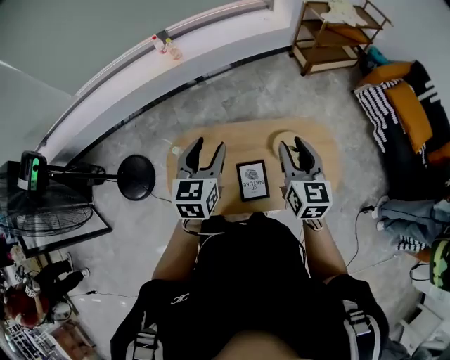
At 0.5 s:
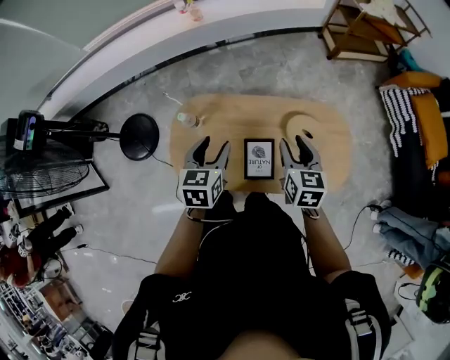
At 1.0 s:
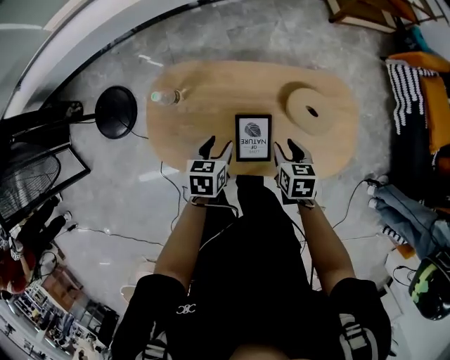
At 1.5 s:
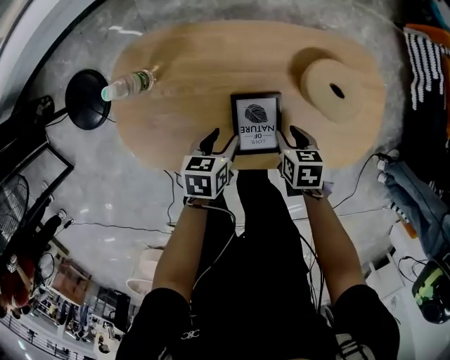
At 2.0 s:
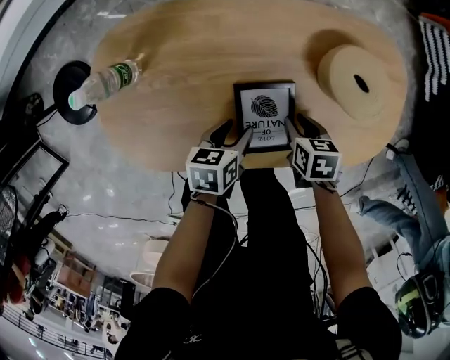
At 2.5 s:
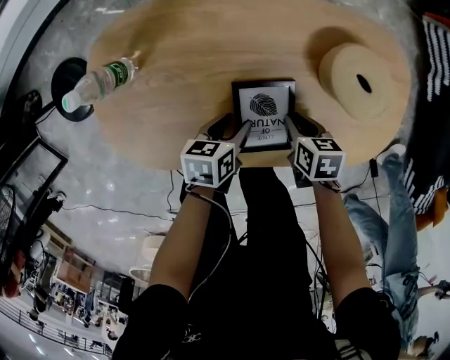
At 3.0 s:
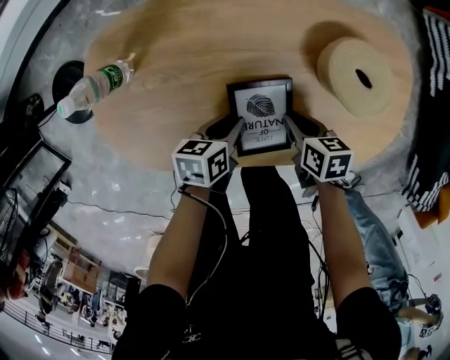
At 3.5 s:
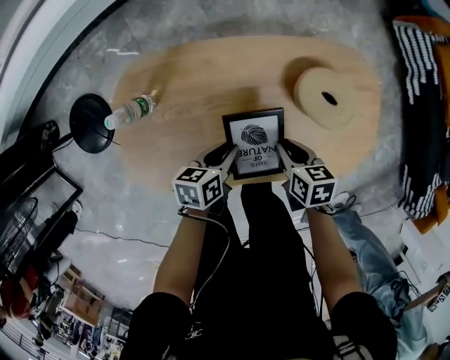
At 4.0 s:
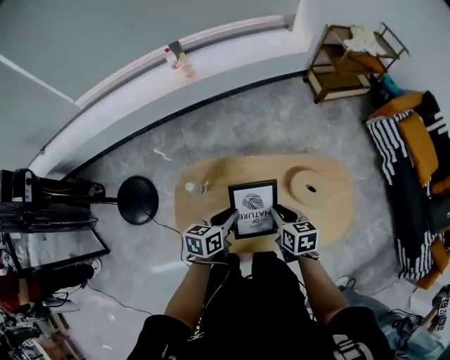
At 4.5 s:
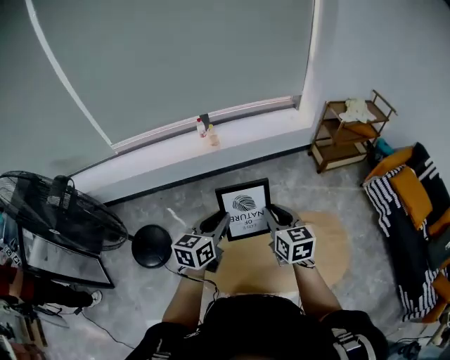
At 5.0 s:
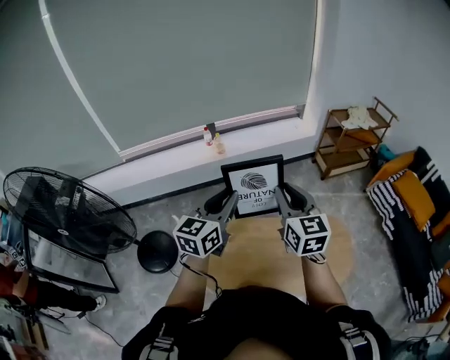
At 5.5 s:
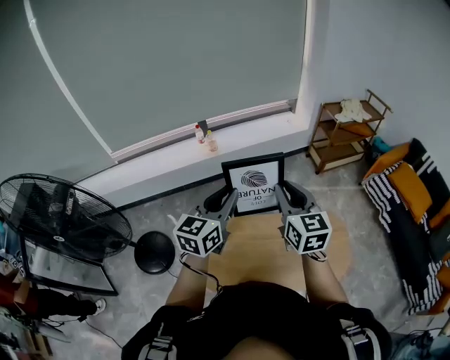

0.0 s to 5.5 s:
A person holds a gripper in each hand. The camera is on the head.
0.0 to 2.0 s: Both grippers move downward, about 60 cm. The right gripper angles its fingers downward, by roughly 50 degrees. The left gripper changes its angle by approximately 50 degrees.
2.0 to 3.5 s: The grippers both shift upward by some 10 cm. The left gripper closes.
3.5 to 5.5 s: Both grippers travel together upward, approximately 60 cm. The left gripper points its fingers about 40 degrees further upward, while the right gripper tilts its fingers approximately 50 degrees upward.

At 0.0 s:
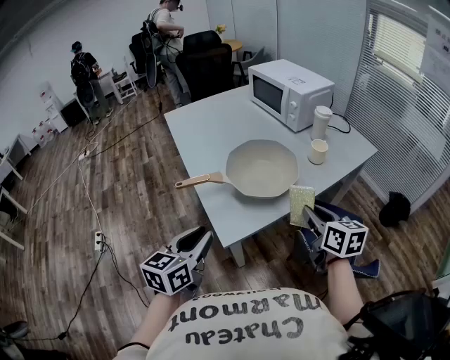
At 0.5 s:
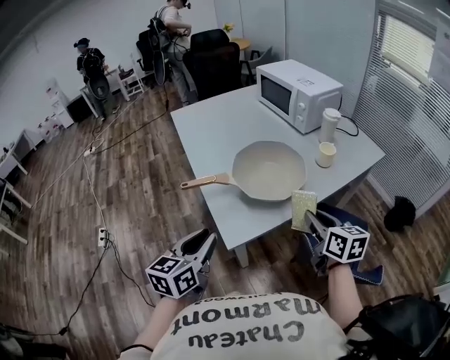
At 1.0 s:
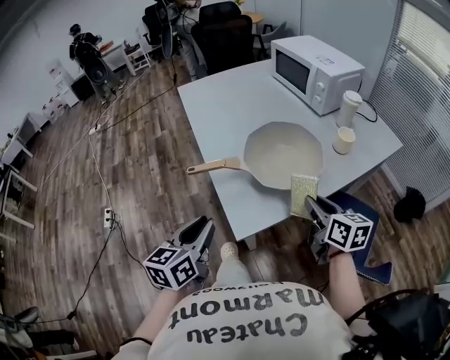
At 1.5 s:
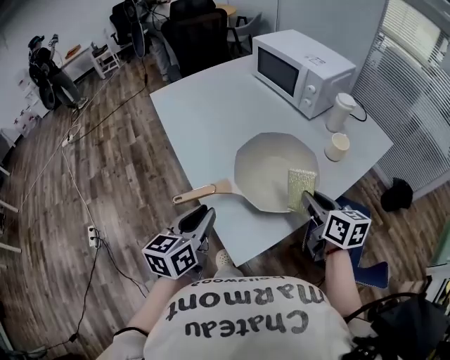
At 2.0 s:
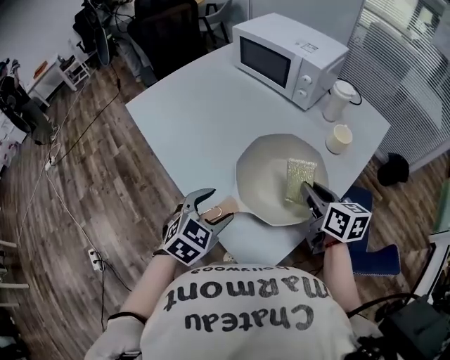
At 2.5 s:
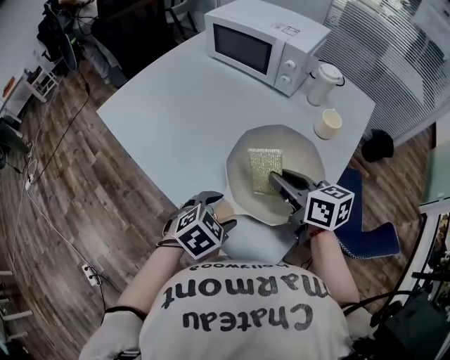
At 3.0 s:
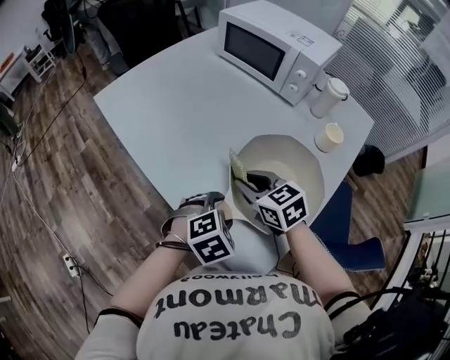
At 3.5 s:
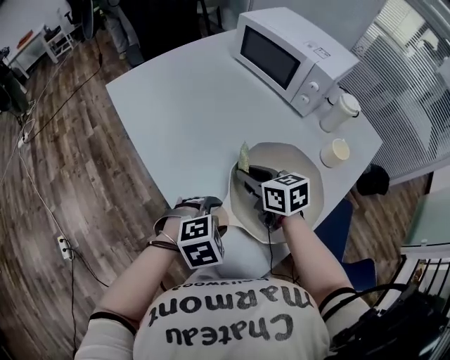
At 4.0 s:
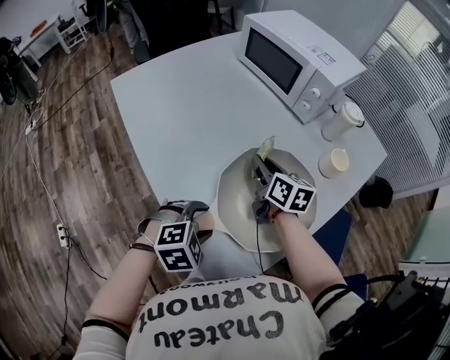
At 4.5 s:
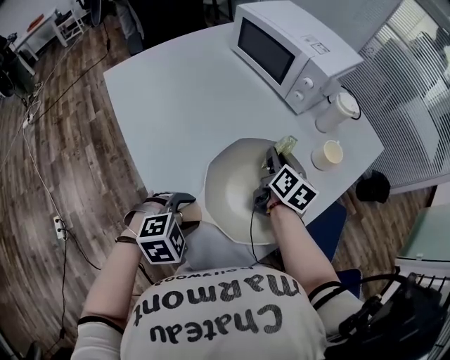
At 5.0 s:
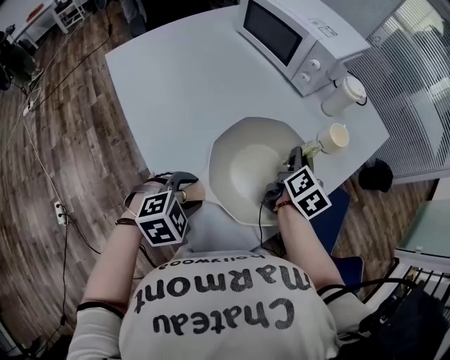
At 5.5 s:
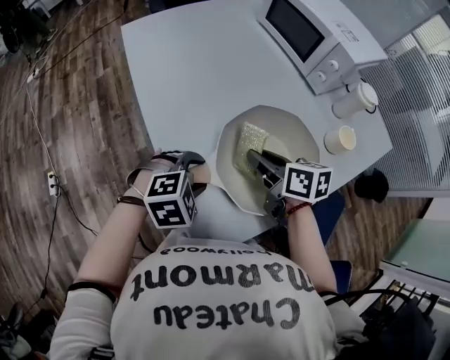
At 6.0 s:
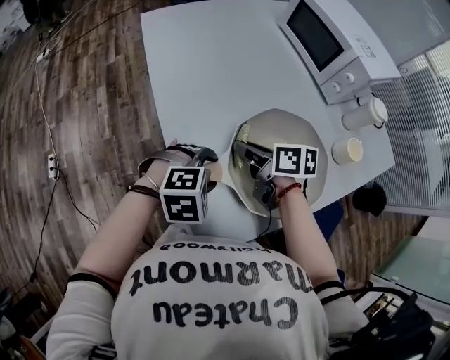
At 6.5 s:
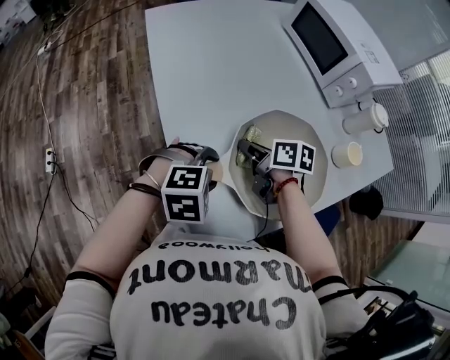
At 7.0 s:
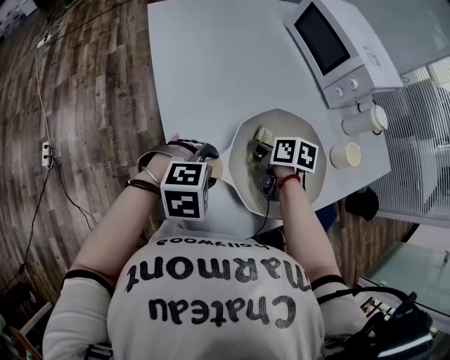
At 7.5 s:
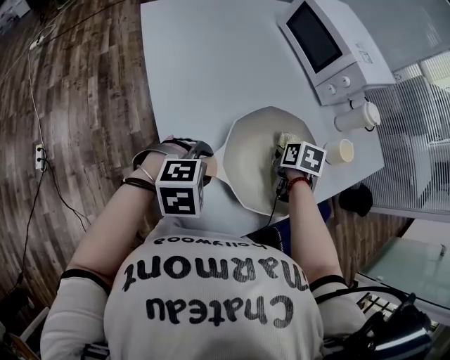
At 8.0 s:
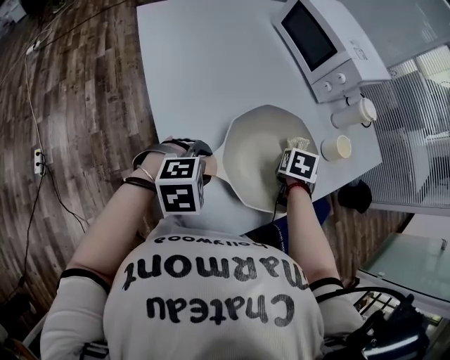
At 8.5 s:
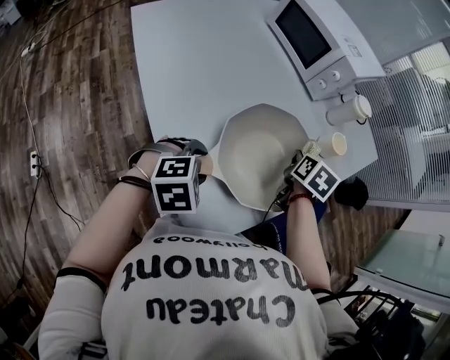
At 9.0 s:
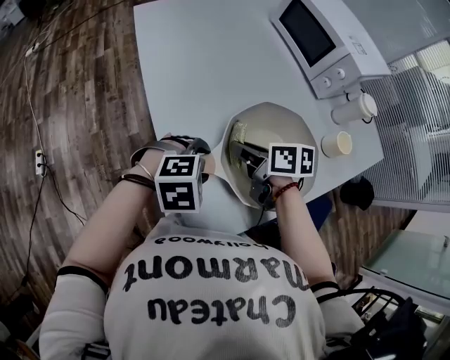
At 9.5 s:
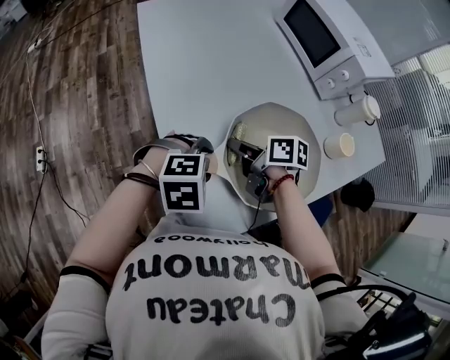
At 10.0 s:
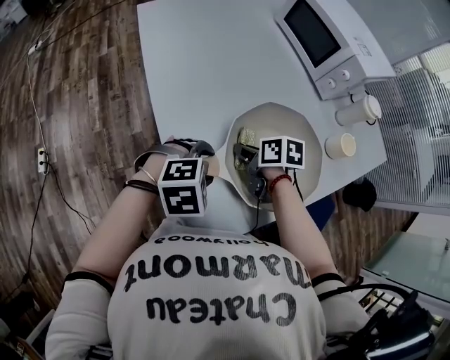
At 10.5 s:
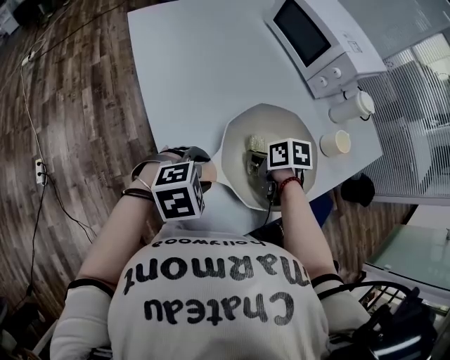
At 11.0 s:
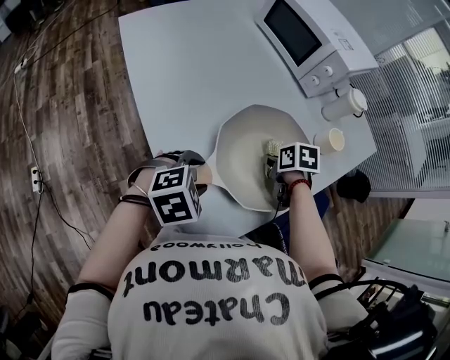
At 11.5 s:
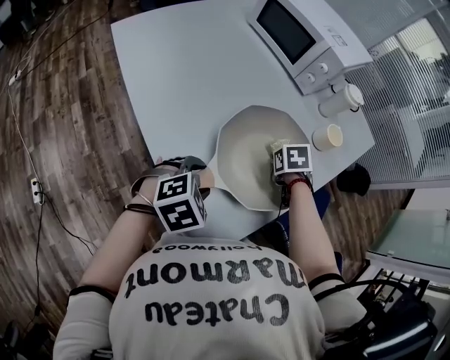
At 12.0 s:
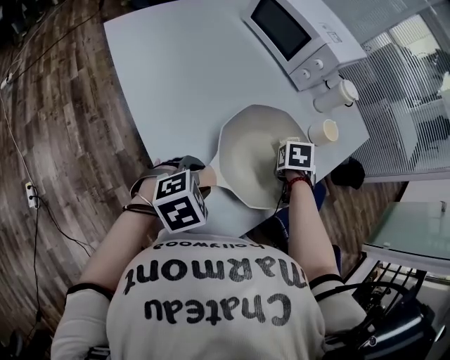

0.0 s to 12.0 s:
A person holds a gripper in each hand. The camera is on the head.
0.0 to 2.0 s: The left gripper moves forward, some 25 cm, changes its angle by some 50 degrees, and opens. The right gripper moves forward and to the left, about 20 cm.
2.0 to 4.0 s: The right gripper travels forward, to the left and downward by some 20 cm. The left gripper is displaced downward by about 5 cm, and rotates approximately 30 degrees.
4.0 to 6.0 s: The right gripper shifts by approximately 15 cm, and swivels some 40 degrees.
6.0 to 8.0 s: The right gripper changes place by about 25 cm, and points its fingers some 30 degrees further downward.
8.0 to 10.0 s: The right gripper changes place by approximately 20 cm, and changes its angle by approximately 50 degrees.
10.0 to 12.0 s: The right gripper changes place by approximately 20 cm, and rotates approximately 50 degrees.

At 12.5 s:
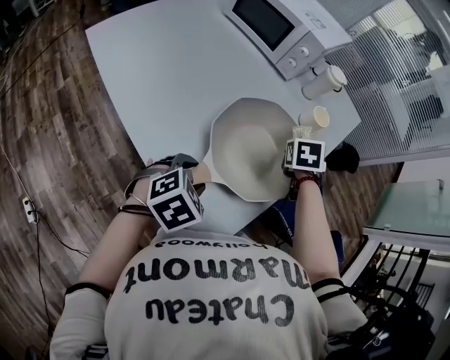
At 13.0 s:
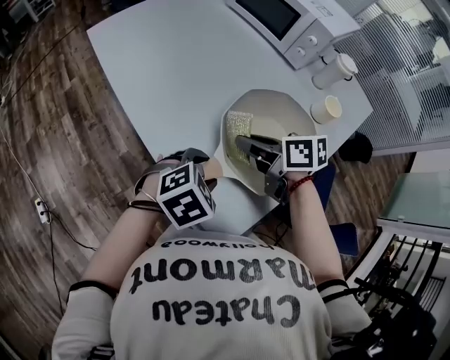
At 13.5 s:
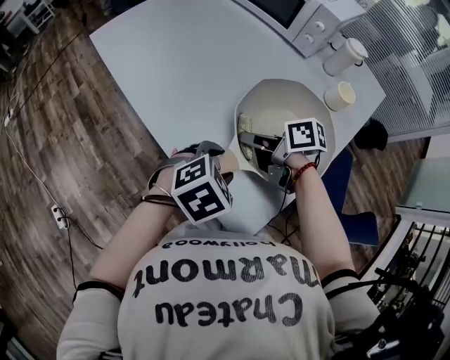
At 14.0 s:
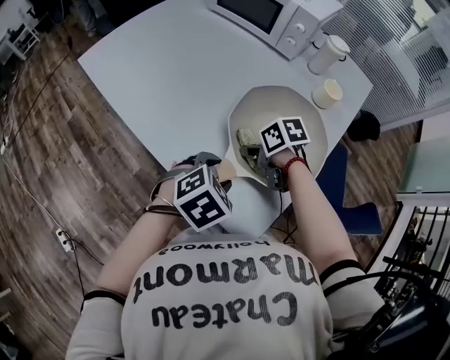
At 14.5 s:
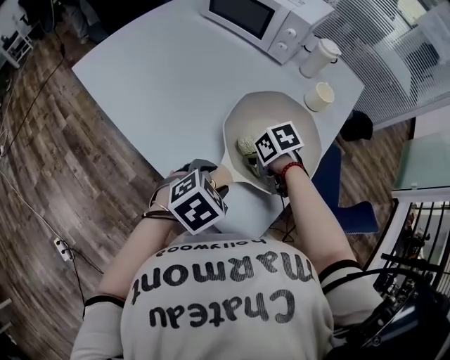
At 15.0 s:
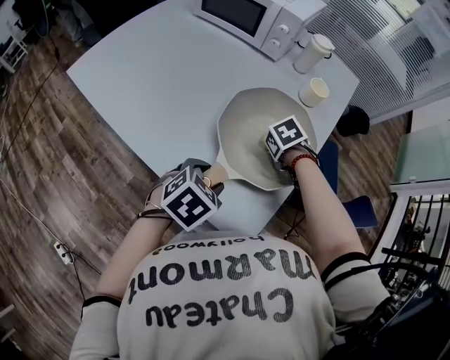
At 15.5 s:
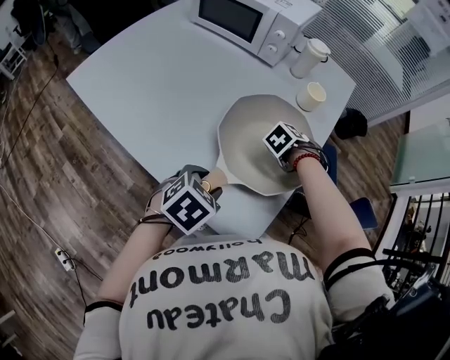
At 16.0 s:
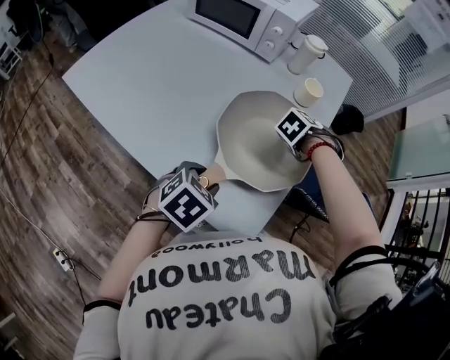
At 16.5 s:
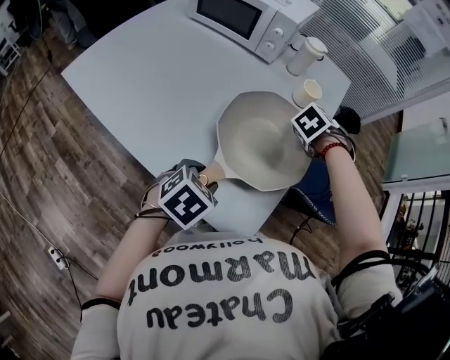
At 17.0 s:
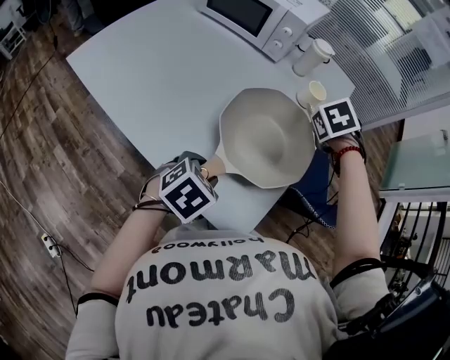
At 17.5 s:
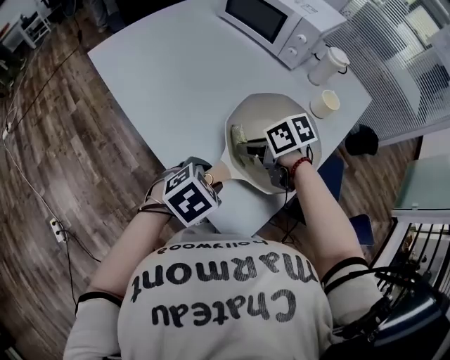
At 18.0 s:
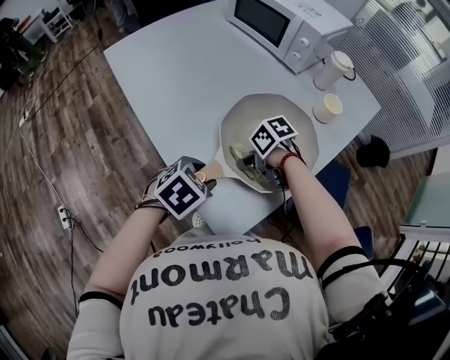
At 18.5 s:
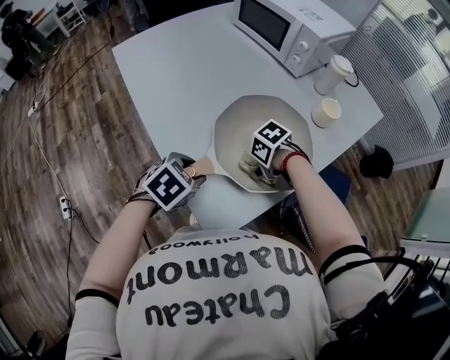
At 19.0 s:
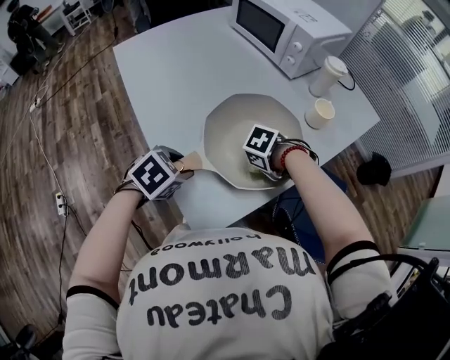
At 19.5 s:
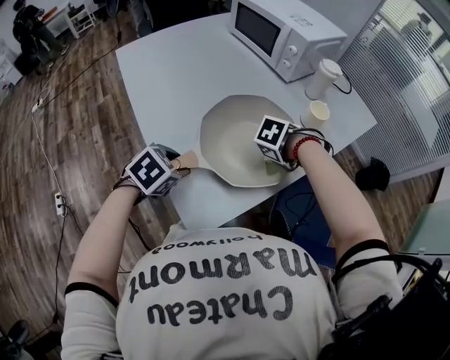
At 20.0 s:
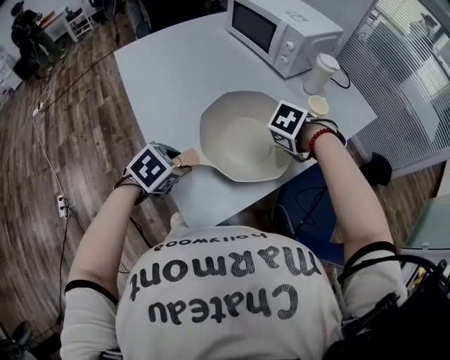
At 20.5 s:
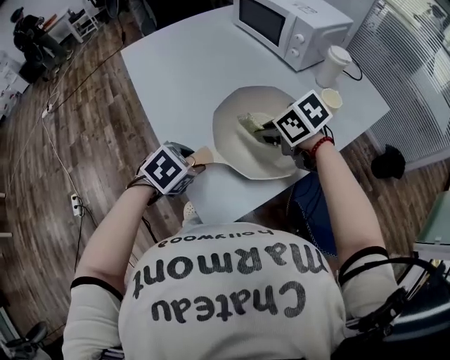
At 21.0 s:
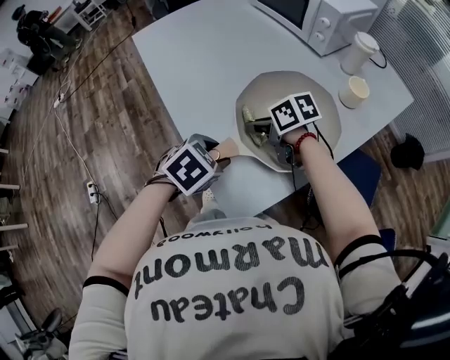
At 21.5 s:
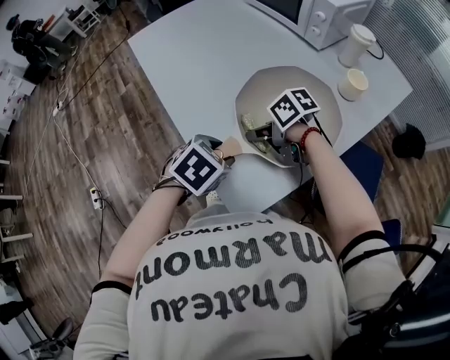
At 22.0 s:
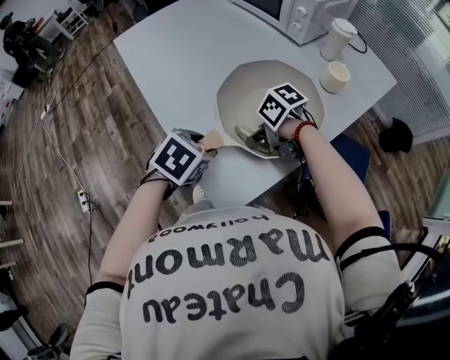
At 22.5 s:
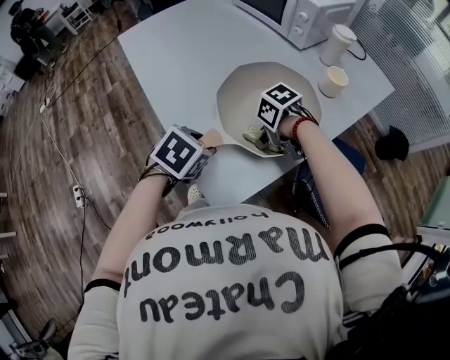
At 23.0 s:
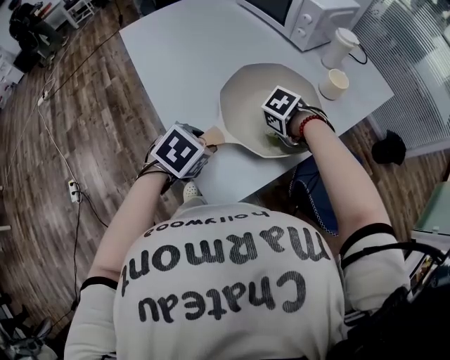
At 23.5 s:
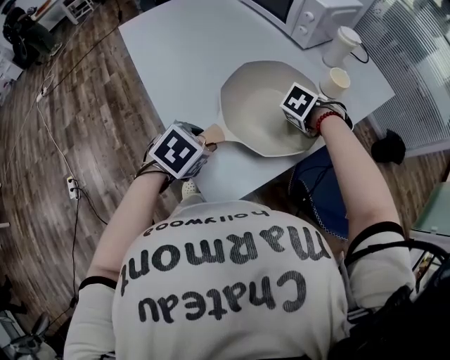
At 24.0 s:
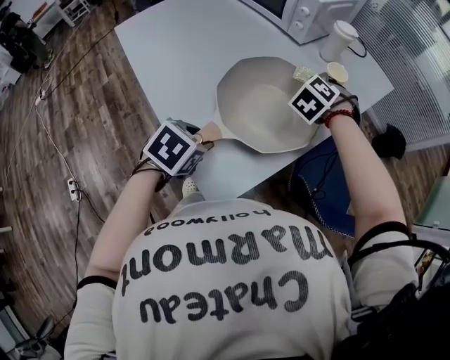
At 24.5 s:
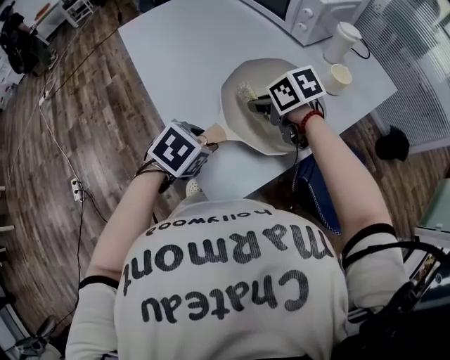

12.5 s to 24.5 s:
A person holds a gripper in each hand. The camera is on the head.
12.5 to 14.5 s: The right gripper ends up approximately 20 cm from where it was, and swivels approximately 40 degrees.
14.5 to 16.5 s: The right gripper ends up about 25 cm from where it was, and turns by roughly 50 degrees.
16.5 to 18.5 s: The right gripper moves roughly 20 cm, and changes its angle by some 50 degrees.
18.5 to 20.5 s: The right gripper shifts approximately 10 cm upward, and turns by about 40 degrees.
20.5 to 22.5 s: The right gripper shifts some 10 cm downward, and turns by approximately 30 degrees.
22.5 to 24.5 s: The right gripper swivels approximately 30 degrees.
